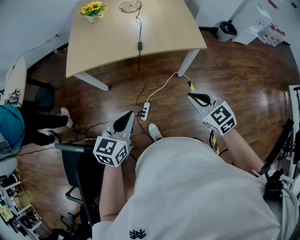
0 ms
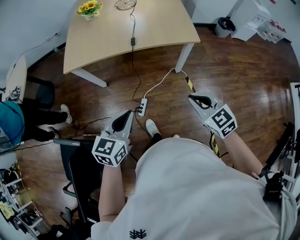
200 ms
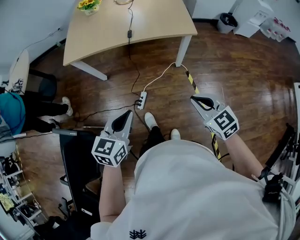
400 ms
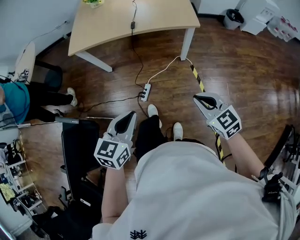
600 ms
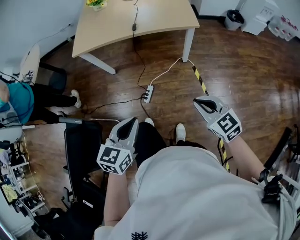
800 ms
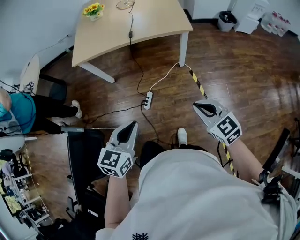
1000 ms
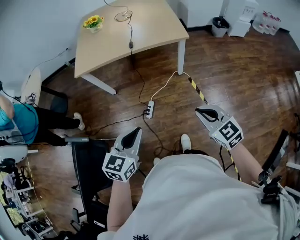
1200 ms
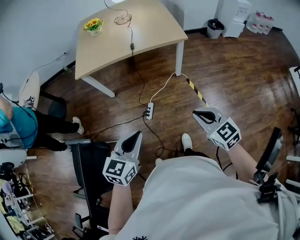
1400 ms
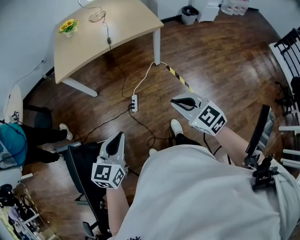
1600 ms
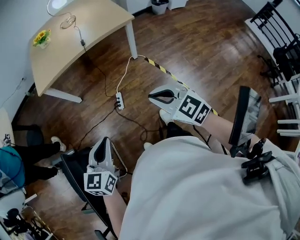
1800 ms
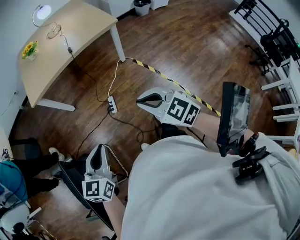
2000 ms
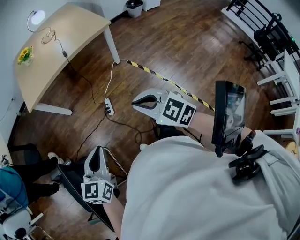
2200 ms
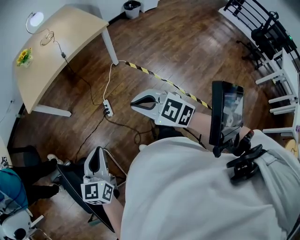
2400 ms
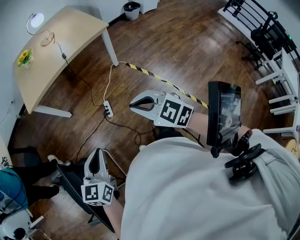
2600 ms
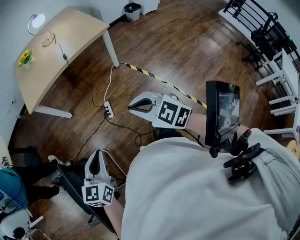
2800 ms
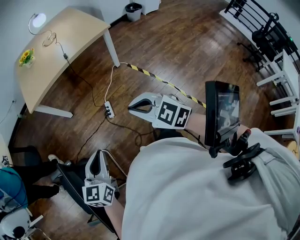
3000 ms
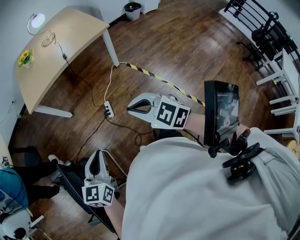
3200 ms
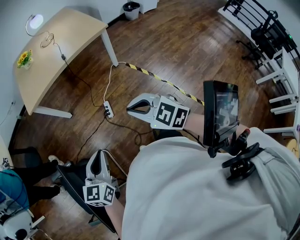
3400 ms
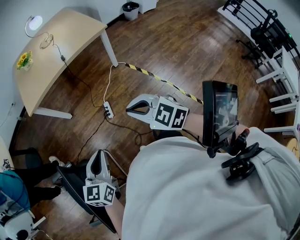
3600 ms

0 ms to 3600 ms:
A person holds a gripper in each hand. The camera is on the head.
0 ms to 1800 ms: Both grippers move backward, approximately 30 cm.
1800 ms to 3600 ms: The left gripper heads backward, covering some 5 cm; the right gripper is displaced to the left and backward by about 10 cm.

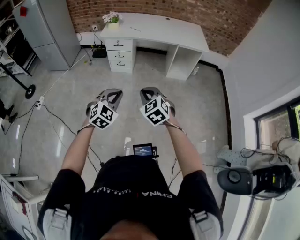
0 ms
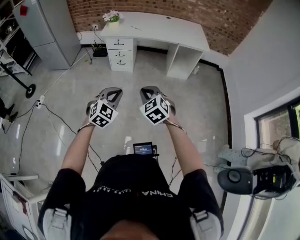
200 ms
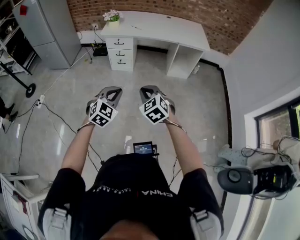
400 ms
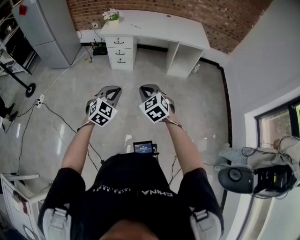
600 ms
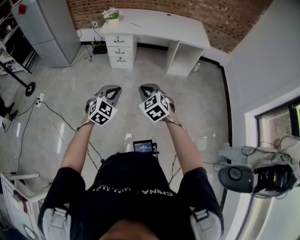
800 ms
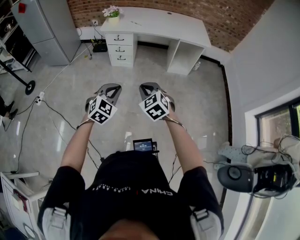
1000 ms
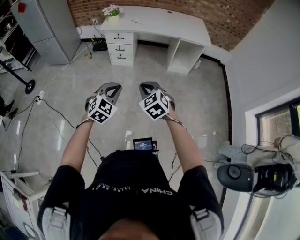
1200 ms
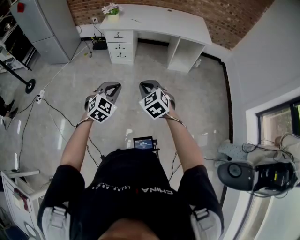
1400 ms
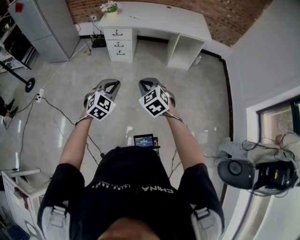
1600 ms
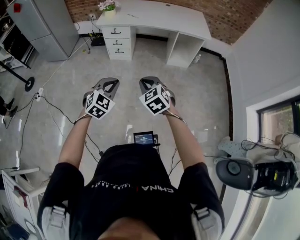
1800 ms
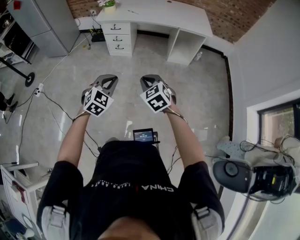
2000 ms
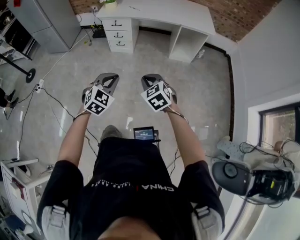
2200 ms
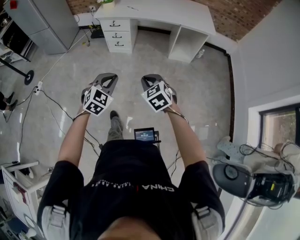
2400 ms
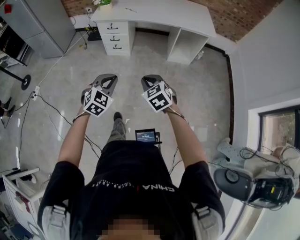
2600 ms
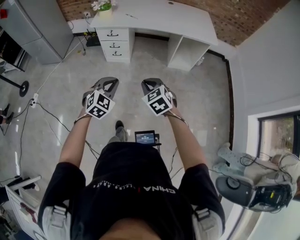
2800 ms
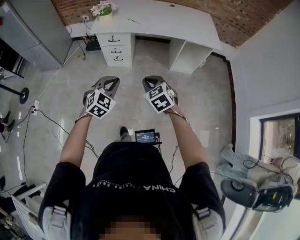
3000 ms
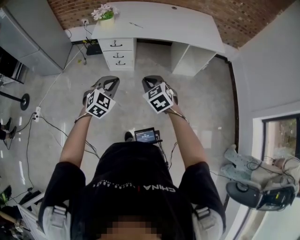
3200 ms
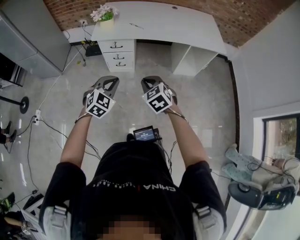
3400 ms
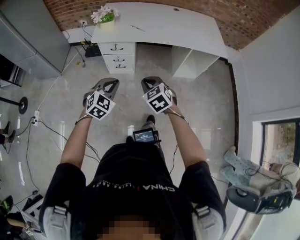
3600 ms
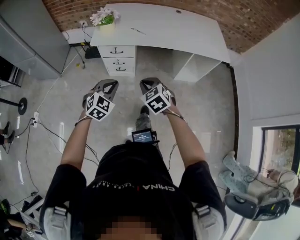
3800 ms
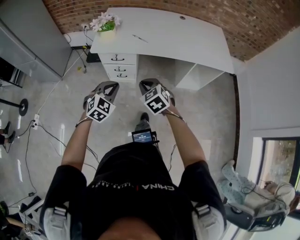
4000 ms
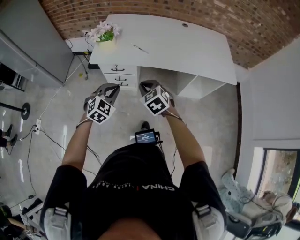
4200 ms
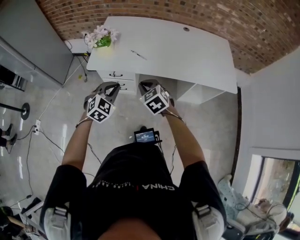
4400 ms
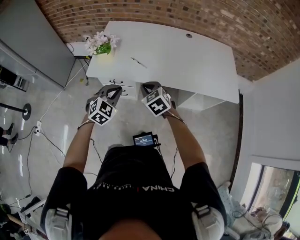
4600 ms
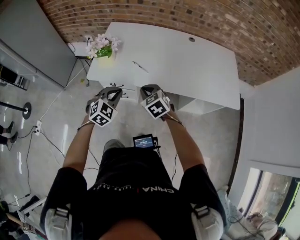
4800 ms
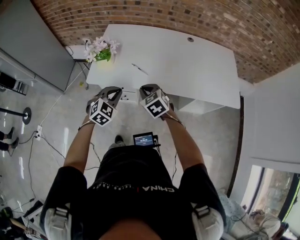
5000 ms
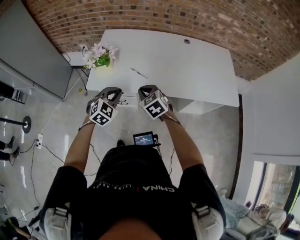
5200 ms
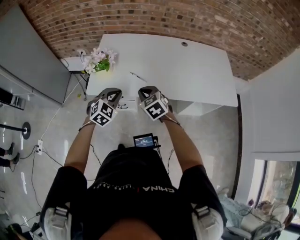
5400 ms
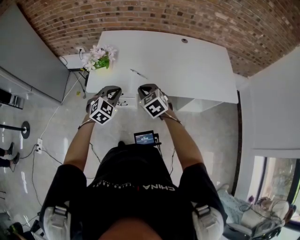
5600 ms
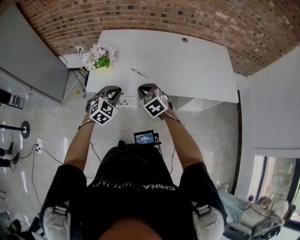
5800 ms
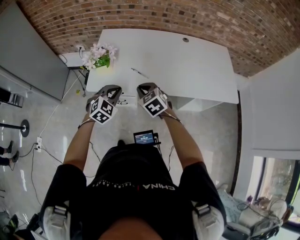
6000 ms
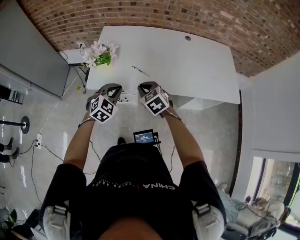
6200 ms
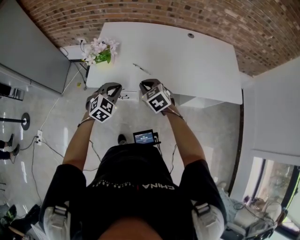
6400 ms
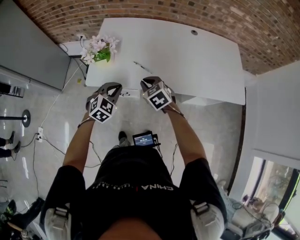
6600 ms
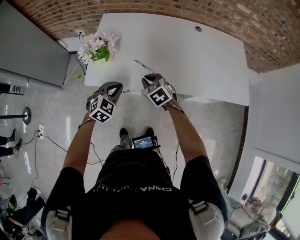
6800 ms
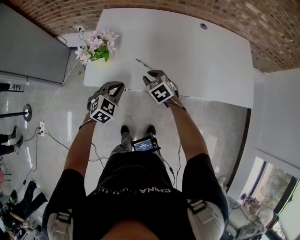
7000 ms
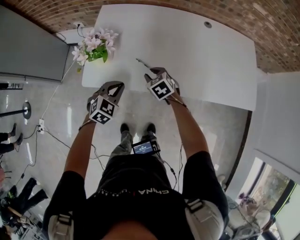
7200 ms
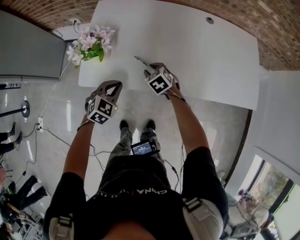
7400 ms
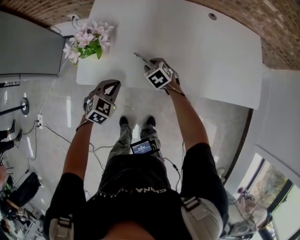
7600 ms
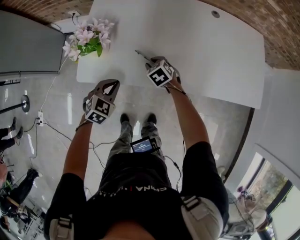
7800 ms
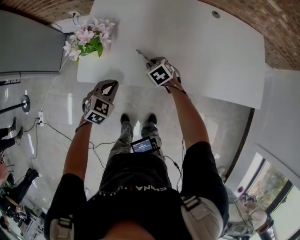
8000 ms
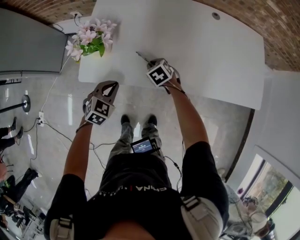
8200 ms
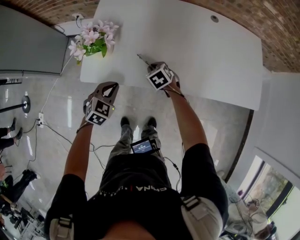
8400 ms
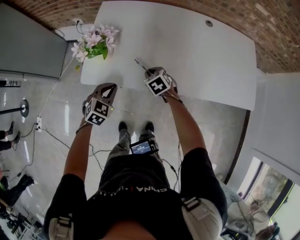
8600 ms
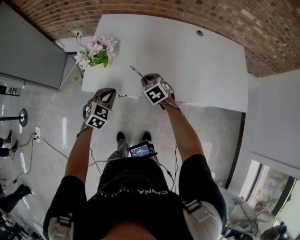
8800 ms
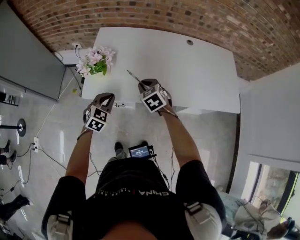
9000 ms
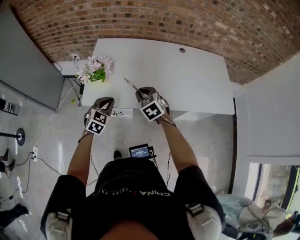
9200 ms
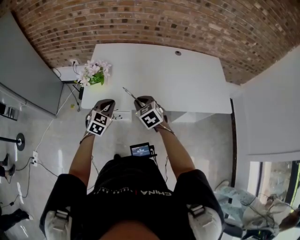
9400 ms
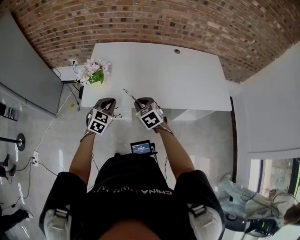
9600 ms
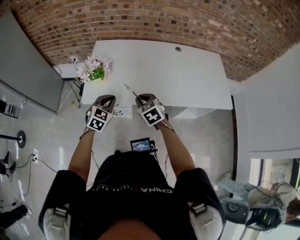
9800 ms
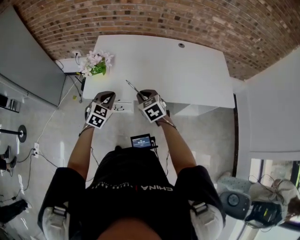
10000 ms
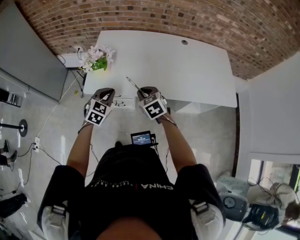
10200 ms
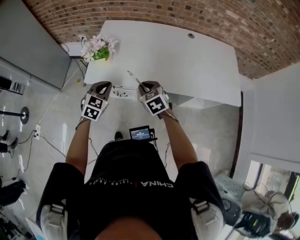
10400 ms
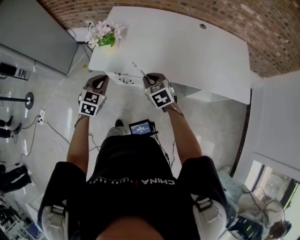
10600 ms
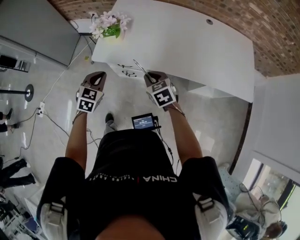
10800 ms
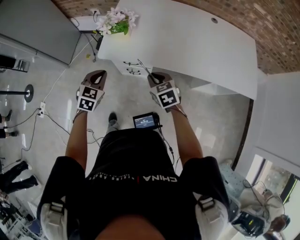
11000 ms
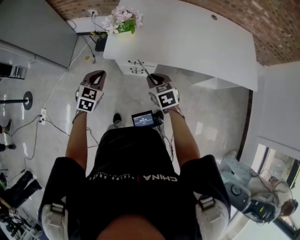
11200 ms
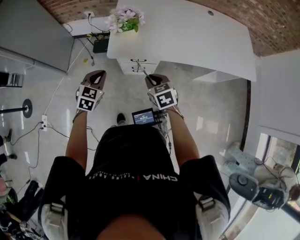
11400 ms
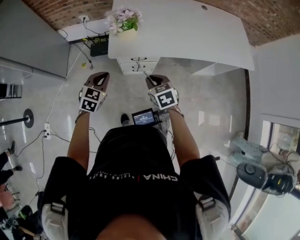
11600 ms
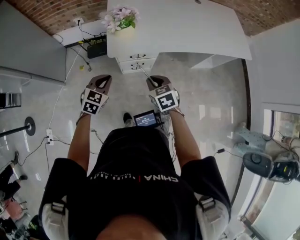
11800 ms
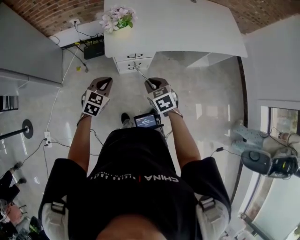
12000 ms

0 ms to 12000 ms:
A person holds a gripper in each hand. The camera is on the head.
0 ms to 1600 ms: There are only small adjustments of the grippers.
1600 ms to 3000 ms: The two grippers go some 30 cm forward.
3000 ms to 4400 ms: The pair of grippers is taken forward, about 40 cm.
4400 ms to 6000 ms: Both grippers travel together forward, about 15 cm.
6000 ms to 7600 ms: The right gripper goes roughly 25 cm downward and forward, and opens up; the left gripper is displaced downward and forward by roughly 15 cm.
7600 ms to 9000 ms: The left gripper heads upward, covering roughly 5 cm. The right gripper goes about 20 cm upward and backward.
9000 ms to 10400 ms: The right gripper travels backward by about 10 cm; the left gripper moves some 5 cm.
10400 ms to 12000 ms: The left gripper changes place by approximately 30 cm. The right gripper changes place by roughly 30 cm, and turns by approximately 20 degrees.

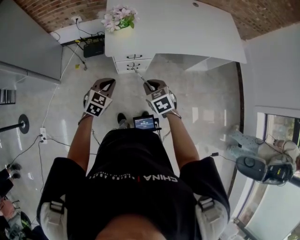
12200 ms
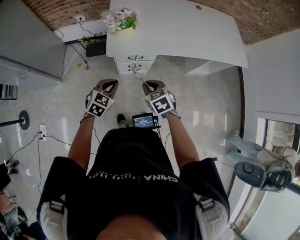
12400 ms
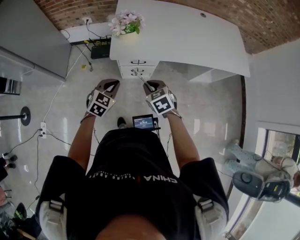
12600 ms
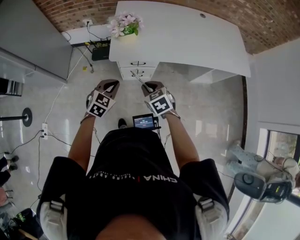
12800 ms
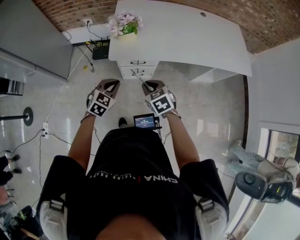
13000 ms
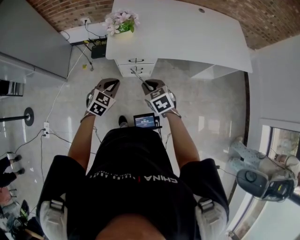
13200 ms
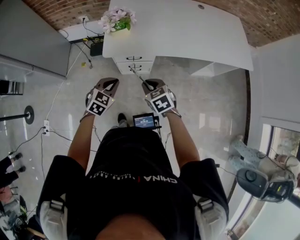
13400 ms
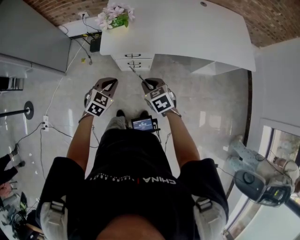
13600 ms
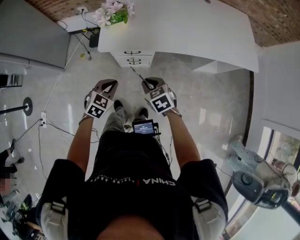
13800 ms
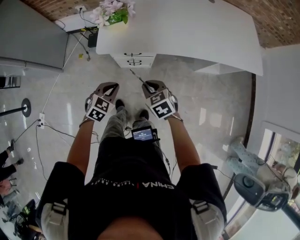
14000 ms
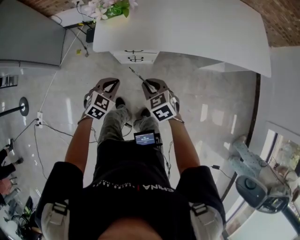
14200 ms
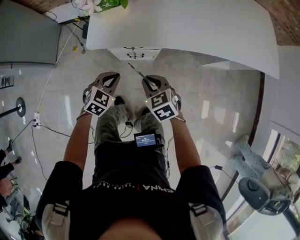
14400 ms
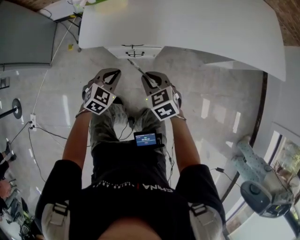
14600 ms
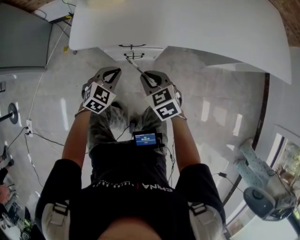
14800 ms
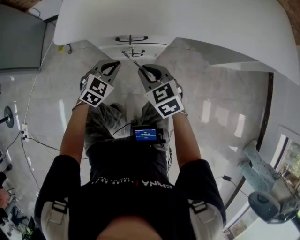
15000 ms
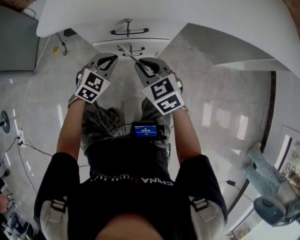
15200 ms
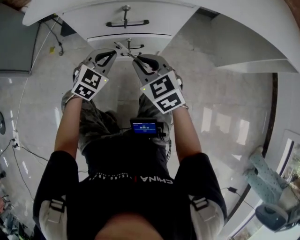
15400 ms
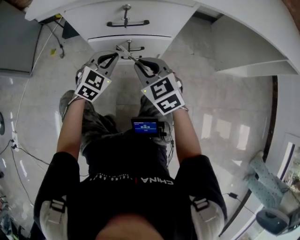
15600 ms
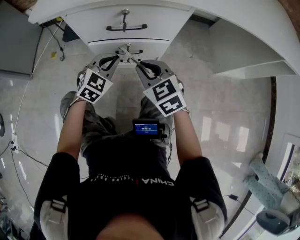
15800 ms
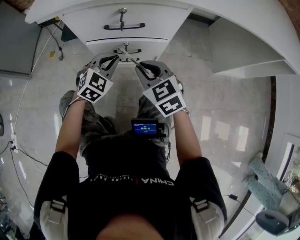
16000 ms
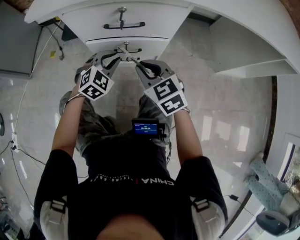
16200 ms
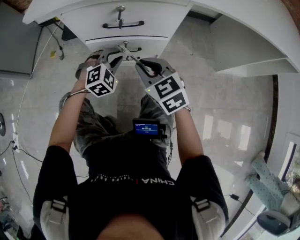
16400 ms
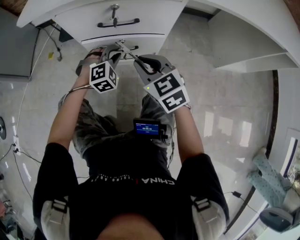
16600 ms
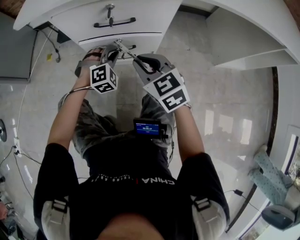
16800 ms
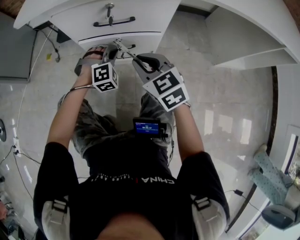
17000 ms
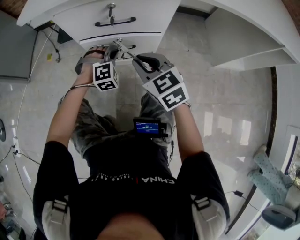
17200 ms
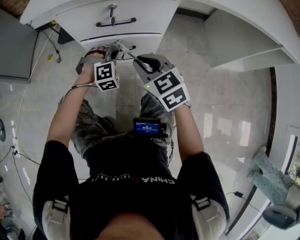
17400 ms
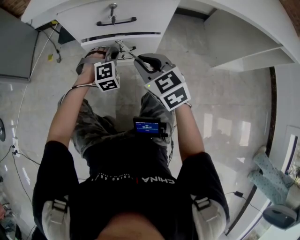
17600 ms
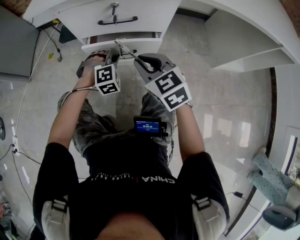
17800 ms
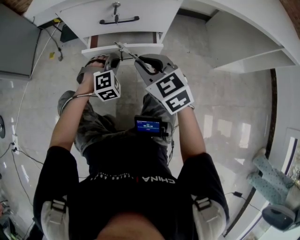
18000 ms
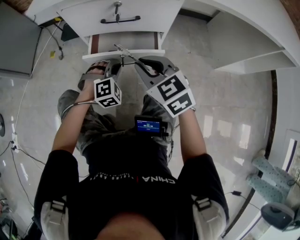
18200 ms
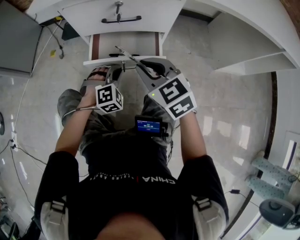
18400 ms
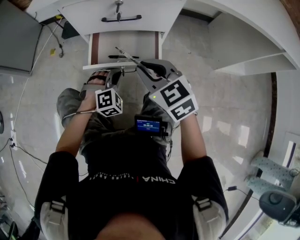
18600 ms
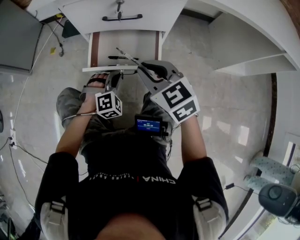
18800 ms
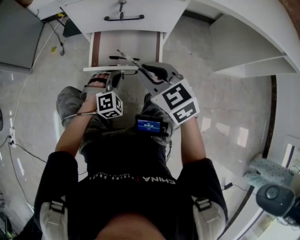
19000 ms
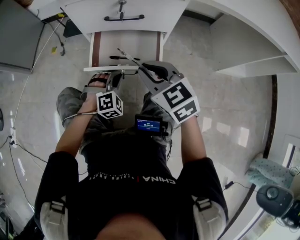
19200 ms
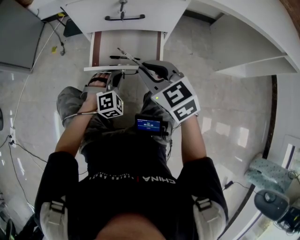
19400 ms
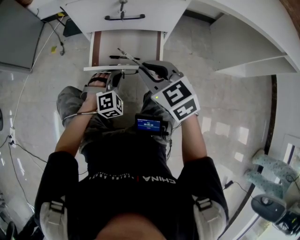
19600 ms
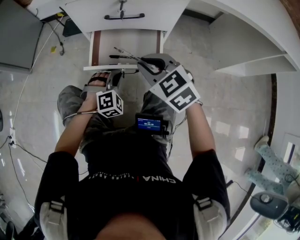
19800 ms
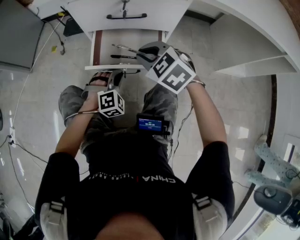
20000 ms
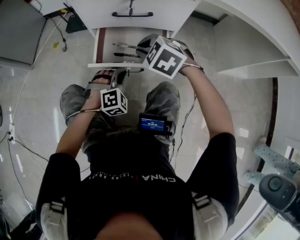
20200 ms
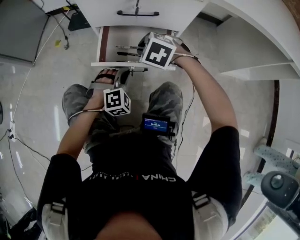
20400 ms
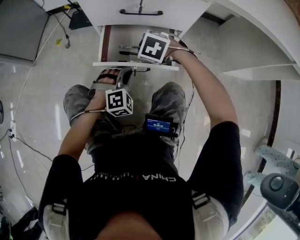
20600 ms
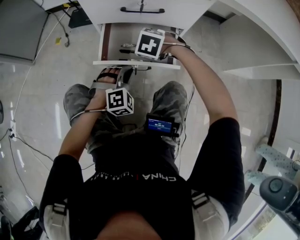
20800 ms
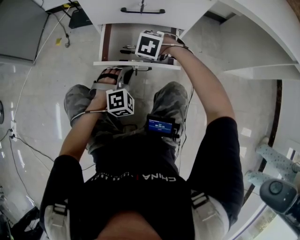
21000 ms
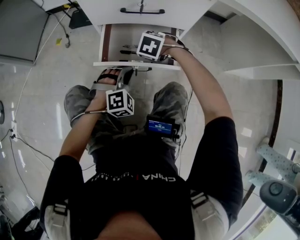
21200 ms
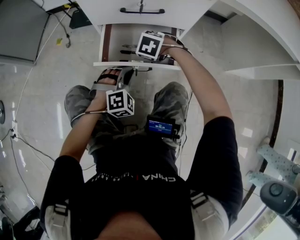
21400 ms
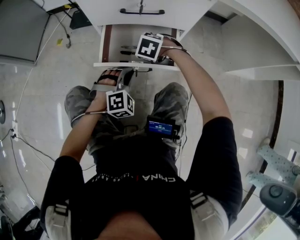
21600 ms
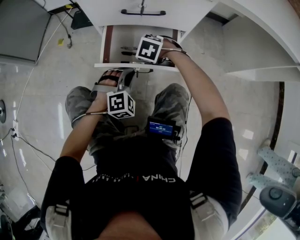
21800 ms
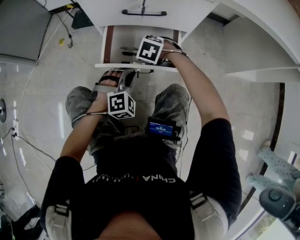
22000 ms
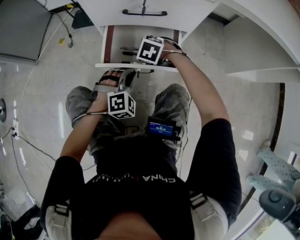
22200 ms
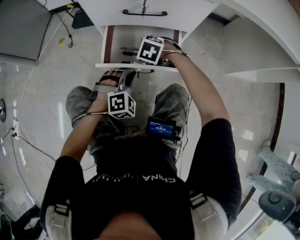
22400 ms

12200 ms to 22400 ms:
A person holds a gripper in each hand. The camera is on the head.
12200 ms to 13600 ms: Both grippers move to the right, approximately 10 cm.
13600 ms to 15200 ms: The grippers both shift downward and forward by roughly 50 cm.
15200 ms to 16600 ms: The left gripper heads downward, covering approximately 10 cm, and rotates some 40 degrees.
16600 ms to 18000 ms: The grippers make only small movements.
18000 ms to 19400 ms: The left gripper shifts approximately 5 cm backward.
19400 ms to 21000 ms: The right gripper heads downward, covering roughly 15 cm, and points its fingers roughly 50 degrees further downward.
21000 ms to 22400 ms: There are only small adjustments of the grippers.
